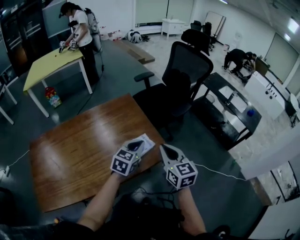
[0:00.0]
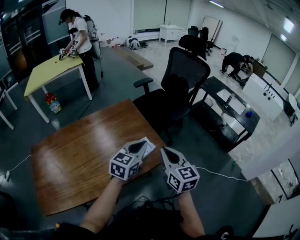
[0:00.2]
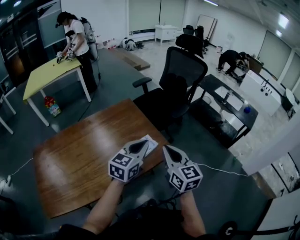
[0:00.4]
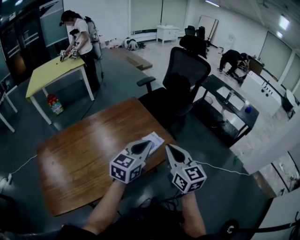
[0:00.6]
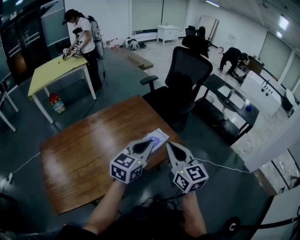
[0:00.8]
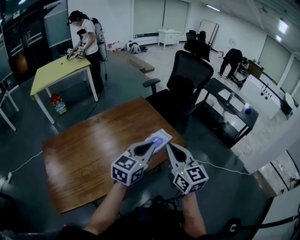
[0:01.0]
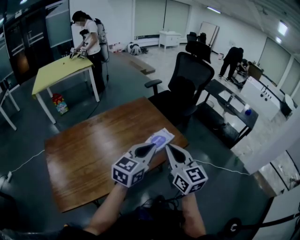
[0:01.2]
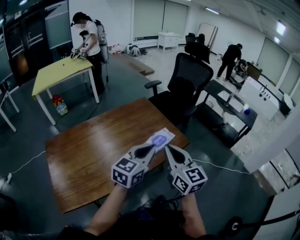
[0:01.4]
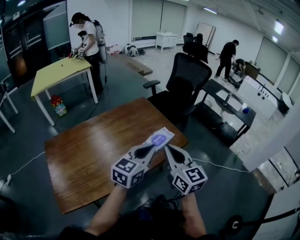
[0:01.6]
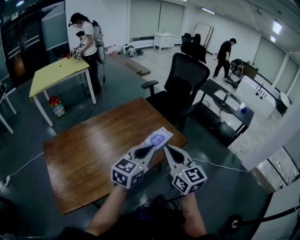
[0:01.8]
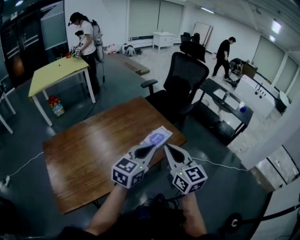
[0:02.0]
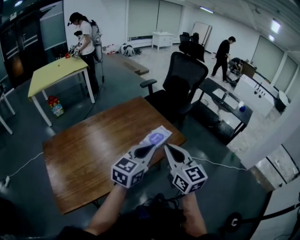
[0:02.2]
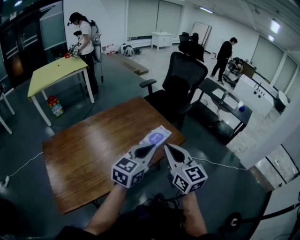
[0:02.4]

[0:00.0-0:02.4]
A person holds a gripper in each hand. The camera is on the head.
0:00.0 to 0:01.2: The right gripper travels backward, to the left and upward by about 20 cm; the left gripper travels backward, upward and to the left by about 20 cm.
0:01.2 to 0:02.4: The grippers stay close to where they were, moving slightly.

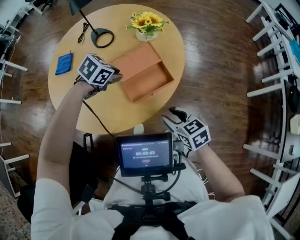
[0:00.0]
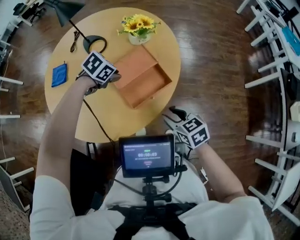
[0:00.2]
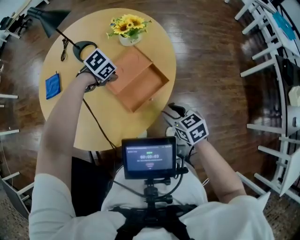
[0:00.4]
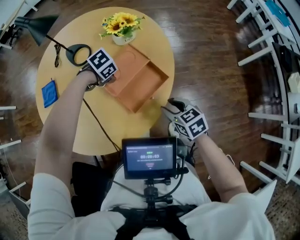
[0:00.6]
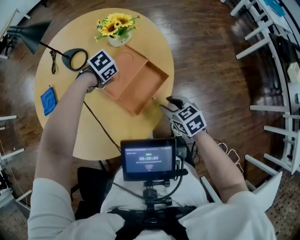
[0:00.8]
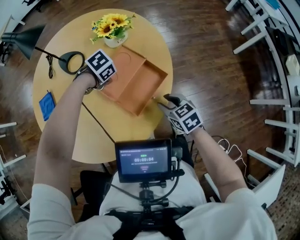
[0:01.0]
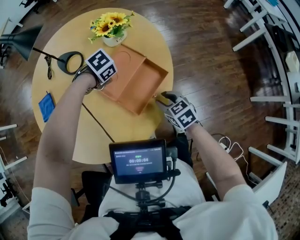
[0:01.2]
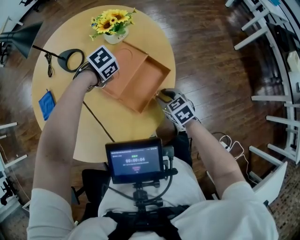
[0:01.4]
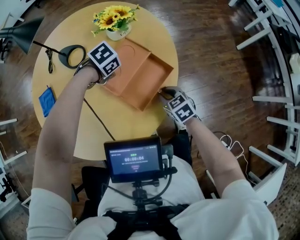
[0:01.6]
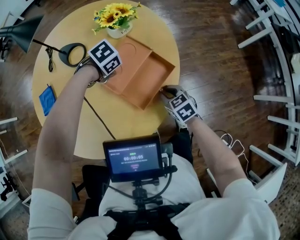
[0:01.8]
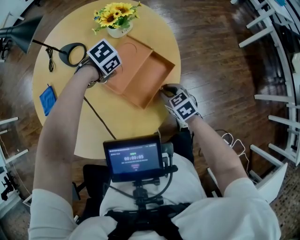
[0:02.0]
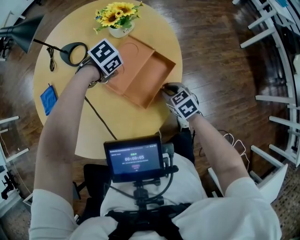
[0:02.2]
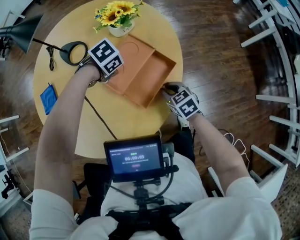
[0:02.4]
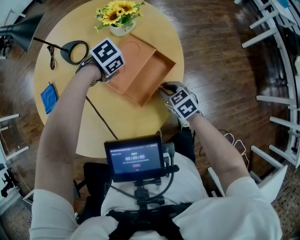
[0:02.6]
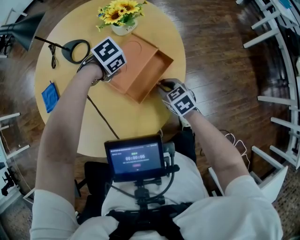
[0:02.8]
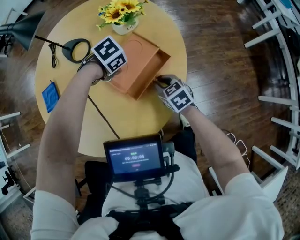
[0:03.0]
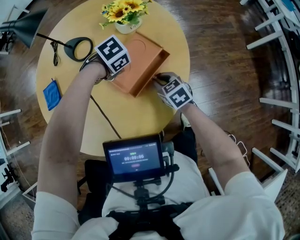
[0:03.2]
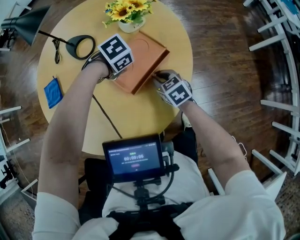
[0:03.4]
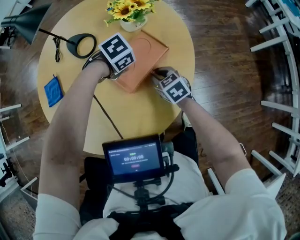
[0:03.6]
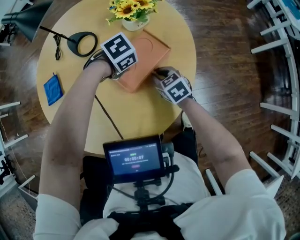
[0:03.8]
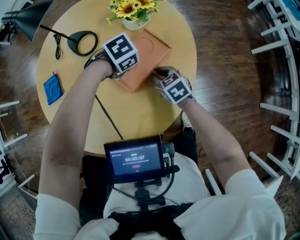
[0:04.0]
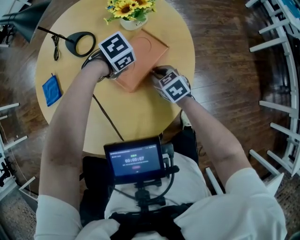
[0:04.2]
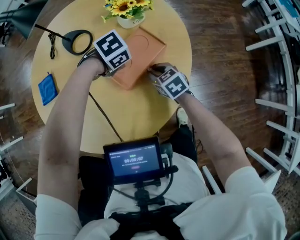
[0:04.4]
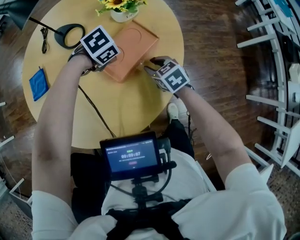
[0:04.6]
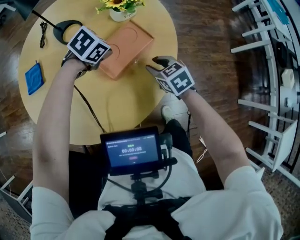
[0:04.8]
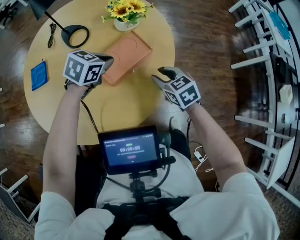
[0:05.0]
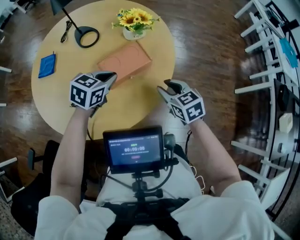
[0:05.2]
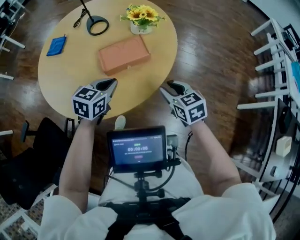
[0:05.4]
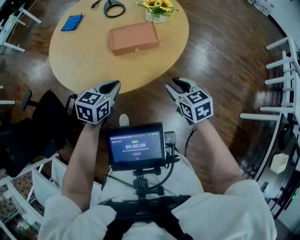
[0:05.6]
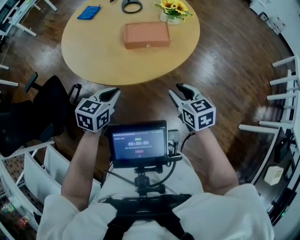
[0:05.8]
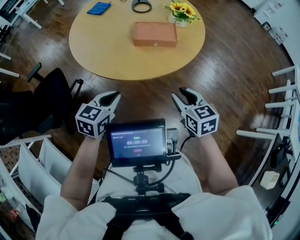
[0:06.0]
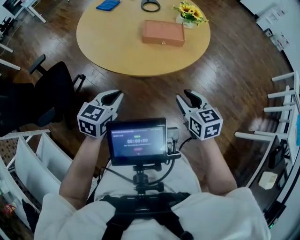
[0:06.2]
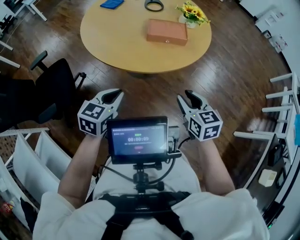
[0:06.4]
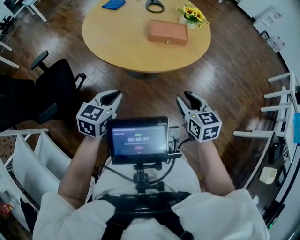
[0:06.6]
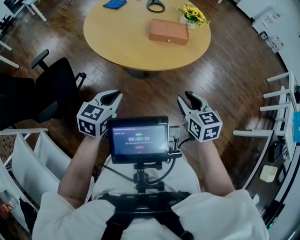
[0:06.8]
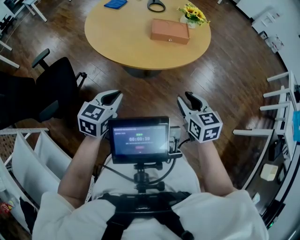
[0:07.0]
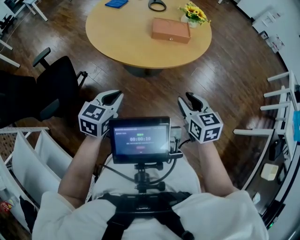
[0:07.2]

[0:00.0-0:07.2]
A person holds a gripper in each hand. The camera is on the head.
0:00.0 to 0:01.4: Both grippers move downward, approximately 15 cm. The right gripper turns by approximately 20 degrees. The left gripper turns by roughly 40 degrees, and closes up.
0:01.4 to 0:02.8: The grippers stay close to where they were, moving slightly.
0:02.8 to 0:04.4: The right gripper ends up about 5 cm from where it was.
0:04.4 to 0:05.8: The right gripper moves roughly 30 cm, and rotates roughly 30 degrees, while the left gripper changes place by roughly 35 cm, and angles its fingers upward, by about 40 degrees.
0:05.8 to 0:07.2: The two grippers go about 15 cm backward and to the left.

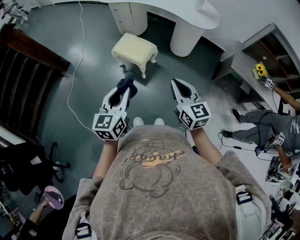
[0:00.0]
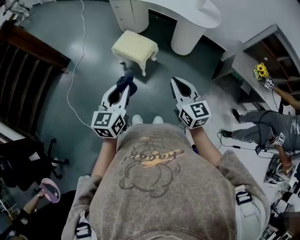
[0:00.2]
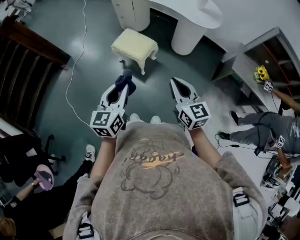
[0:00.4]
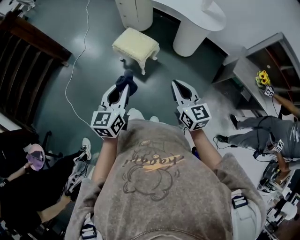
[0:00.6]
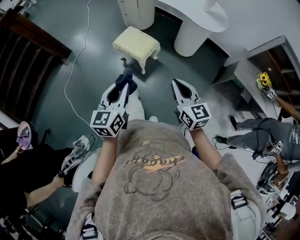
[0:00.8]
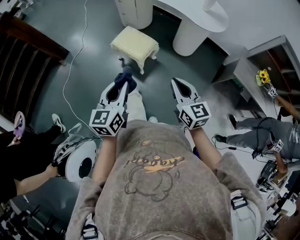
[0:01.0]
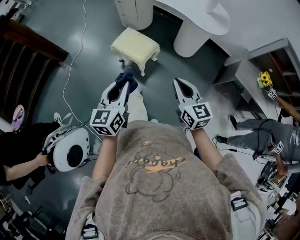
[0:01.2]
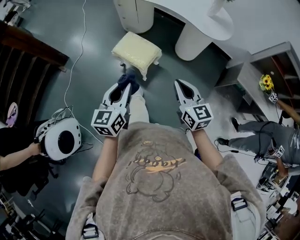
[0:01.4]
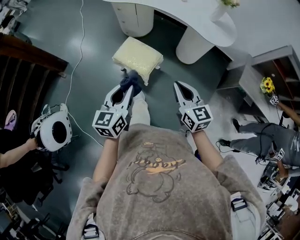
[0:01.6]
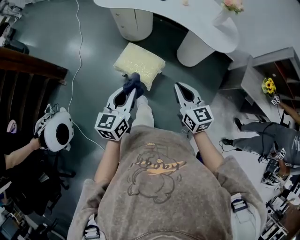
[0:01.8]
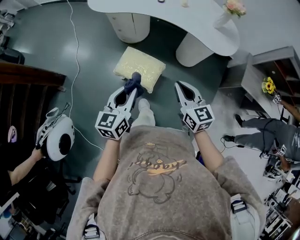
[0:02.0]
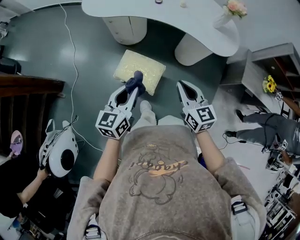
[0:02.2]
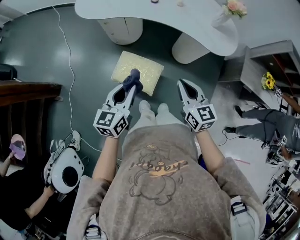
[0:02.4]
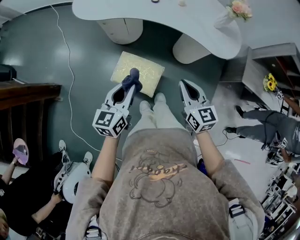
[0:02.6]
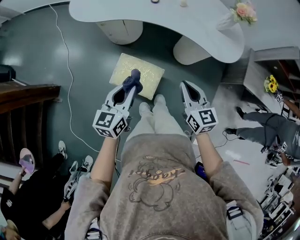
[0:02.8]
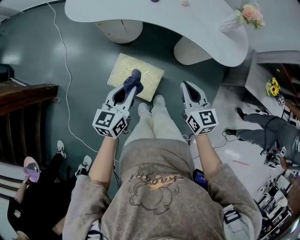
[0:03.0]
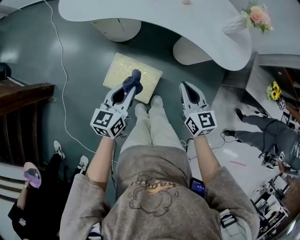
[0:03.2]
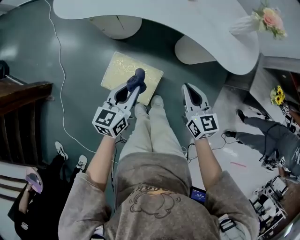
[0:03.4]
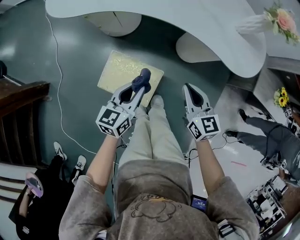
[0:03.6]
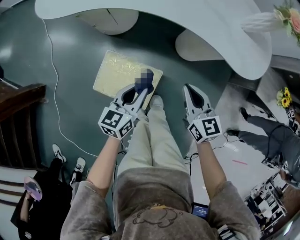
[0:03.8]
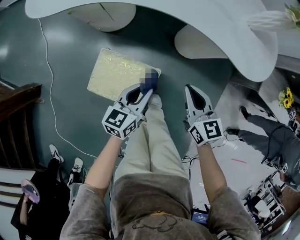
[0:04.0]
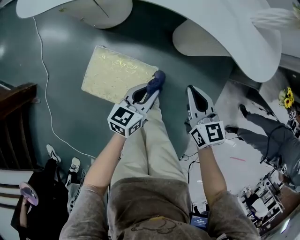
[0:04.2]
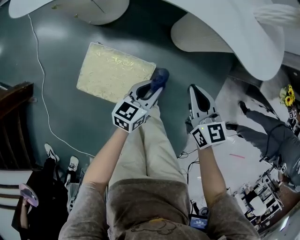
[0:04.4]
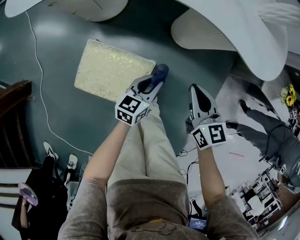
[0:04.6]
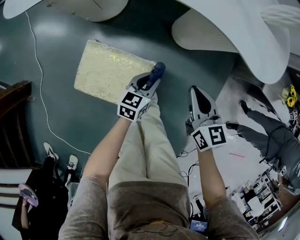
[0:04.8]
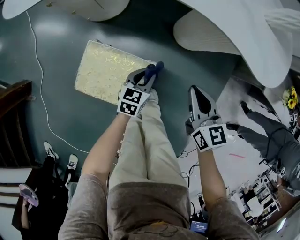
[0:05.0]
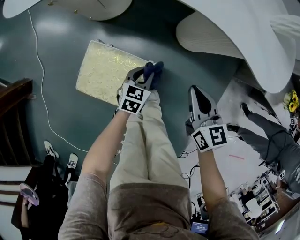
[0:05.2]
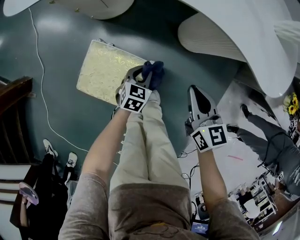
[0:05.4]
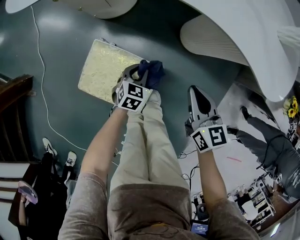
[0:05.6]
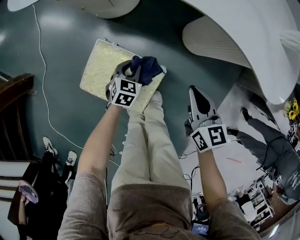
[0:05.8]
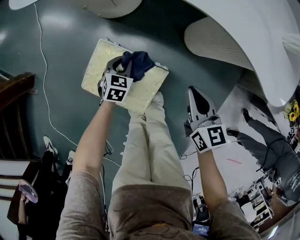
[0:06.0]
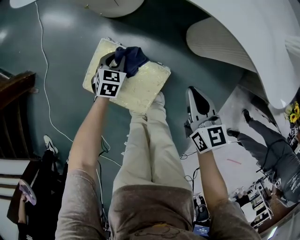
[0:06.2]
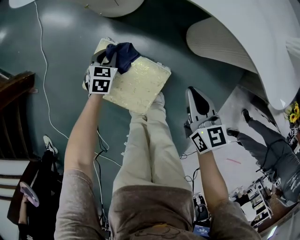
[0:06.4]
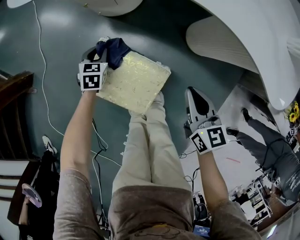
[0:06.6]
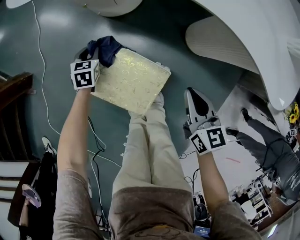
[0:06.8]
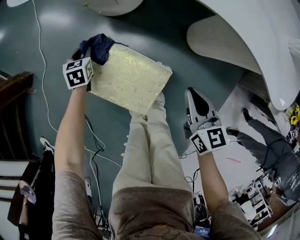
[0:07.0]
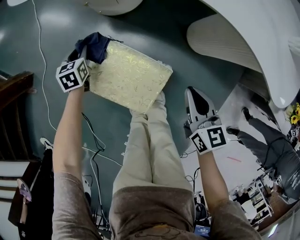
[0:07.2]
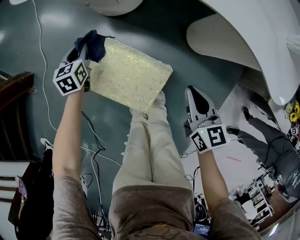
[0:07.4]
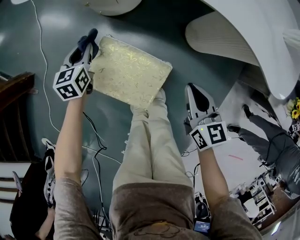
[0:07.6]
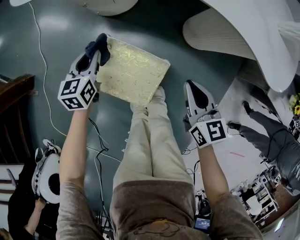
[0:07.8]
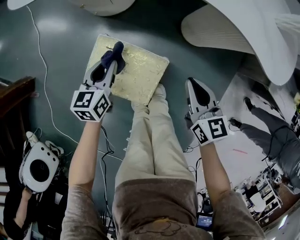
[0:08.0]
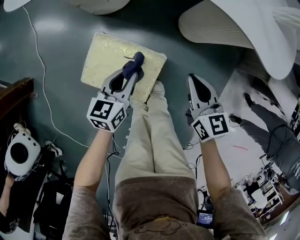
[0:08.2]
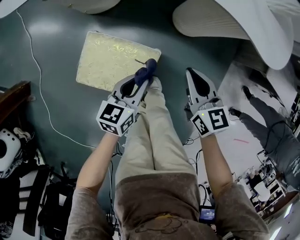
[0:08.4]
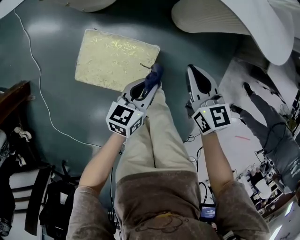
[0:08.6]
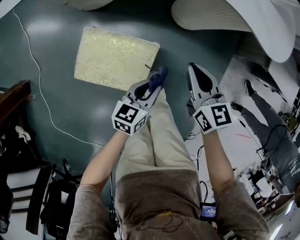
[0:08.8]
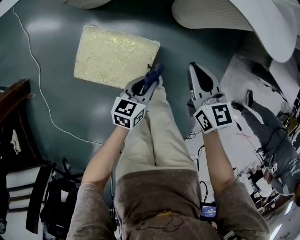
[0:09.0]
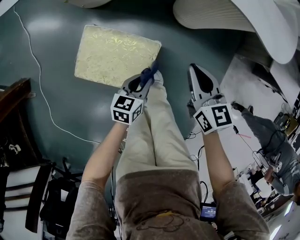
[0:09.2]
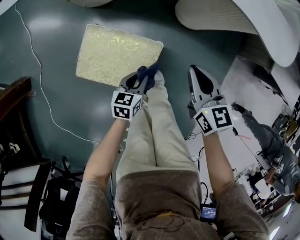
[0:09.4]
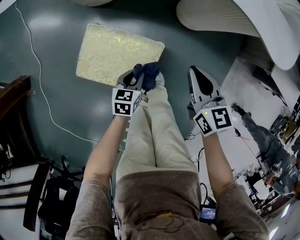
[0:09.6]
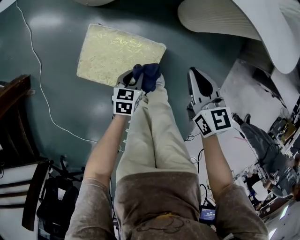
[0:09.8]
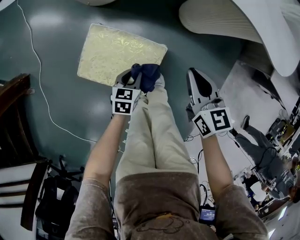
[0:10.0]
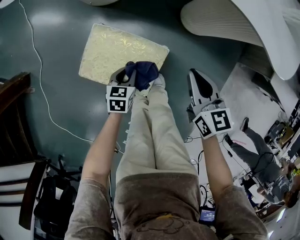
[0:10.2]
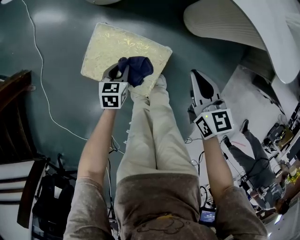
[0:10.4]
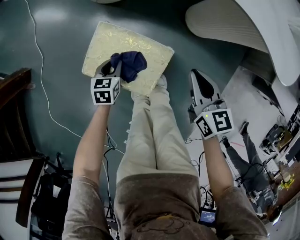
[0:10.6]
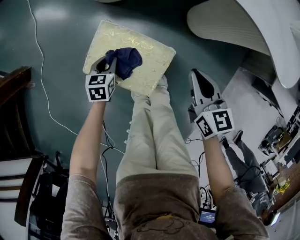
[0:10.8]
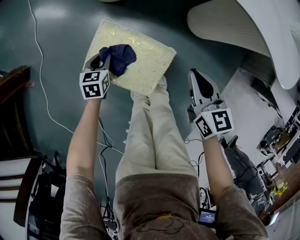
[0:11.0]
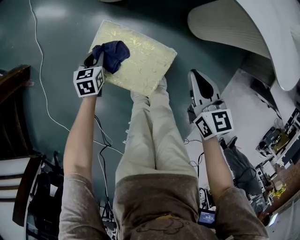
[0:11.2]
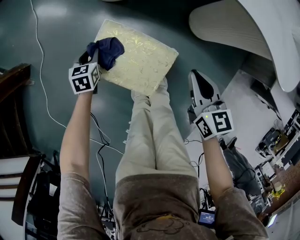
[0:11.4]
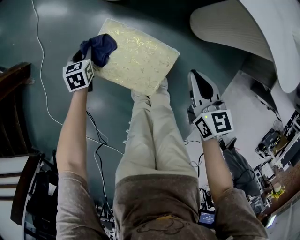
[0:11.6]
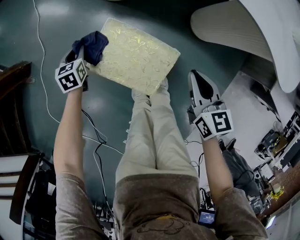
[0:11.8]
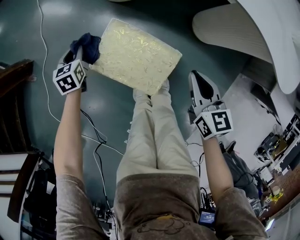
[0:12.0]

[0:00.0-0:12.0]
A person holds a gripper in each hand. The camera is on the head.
0:00.0 to 0:01.6: The grippers both shift forward by roughly 20 cm.
0:01.6 to 0:03.0: Both grippers move forward, approximately 25 cm.
0:03.0 to 0:04.4: The right gripper travels downward by about 20 cm. The left gripper moves downward and to the right, about 35 cm.
0:04.4 to 0:06.0: The left gripper heads to the left, downward and forward, covering approximately 25 cm, and tips its fingers downward by approximately 30 degrees; the right gripper travels to the left by roughly 5 cm.
0:06.0 to 0:07.6: The left gripper goes approximately 20 cm to the left, upward and forward, and turns by about 30 degrees.
0:07.6 to 0:09.0: The left gripper ends up roughly 35 cm from where it was, and changes its angle by about 40 degrees, while the right gripper moves some 5 cm.
0:09.0 to 0:10.4: The left gripper heads to the left and downward, covering some 20 cm, and rotates approximately 30 degrees.
0:10.4 to 0:12.0: The left gripper heads to the left and forward, covering some 25 cm, and changes its angle by some 20 degrees.

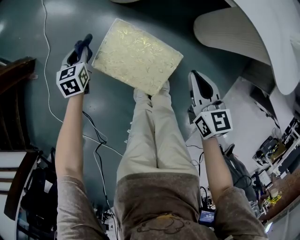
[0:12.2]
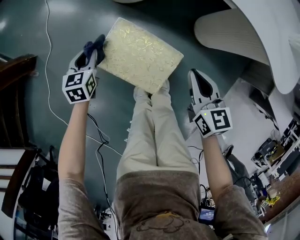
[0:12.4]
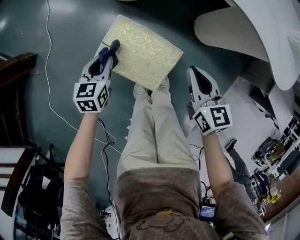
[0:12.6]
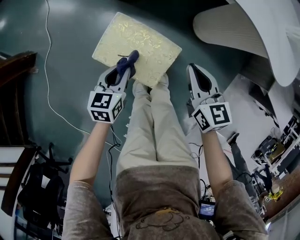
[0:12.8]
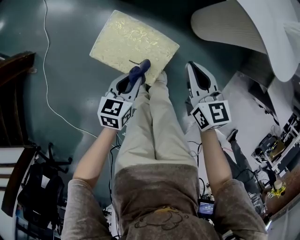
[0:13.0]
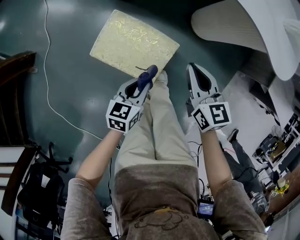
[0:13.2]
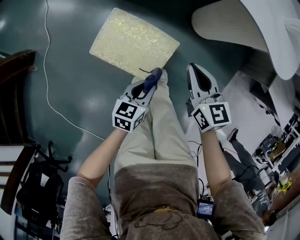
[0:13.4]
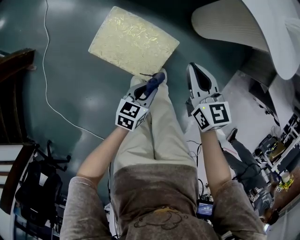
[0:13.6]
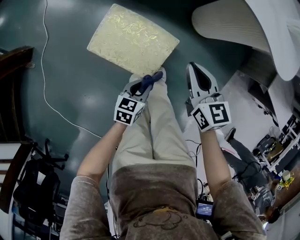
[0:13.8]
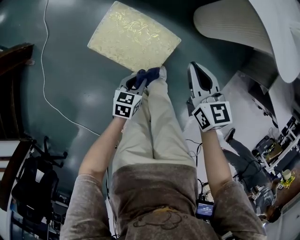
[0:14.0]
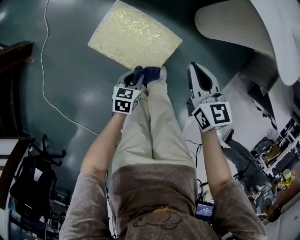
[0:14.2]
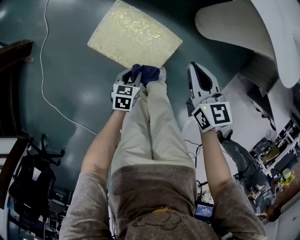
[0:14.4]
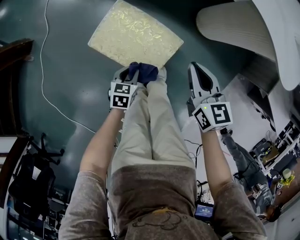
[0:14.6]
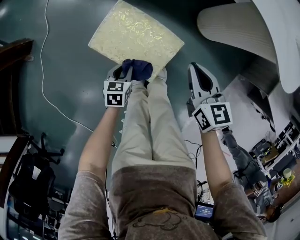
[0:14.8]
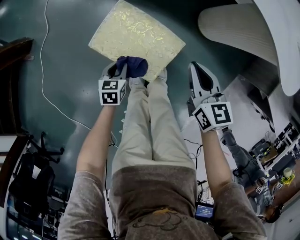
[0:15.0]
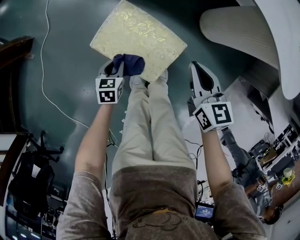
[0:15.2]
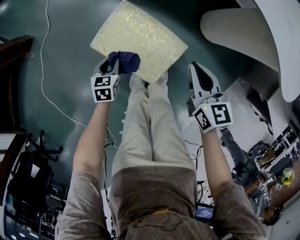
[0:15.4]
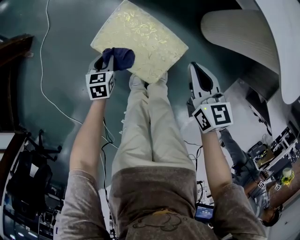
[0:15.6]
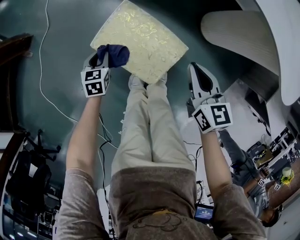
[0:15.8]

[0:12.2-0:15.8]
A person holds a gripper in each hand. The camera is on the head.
0:12.2 to 0:14.0: The left gripper moves about 35 cm, and changes its angle by approximately 30 degrees.
0:14.0 to 0:15.8: The right gripper shifts by roughly 5 cm; the left gripper moves to the left and forward, about 25 cm, and swivels roughly 30 degrees.
